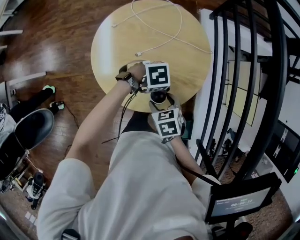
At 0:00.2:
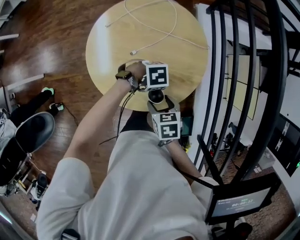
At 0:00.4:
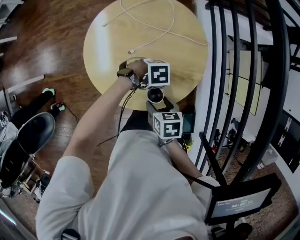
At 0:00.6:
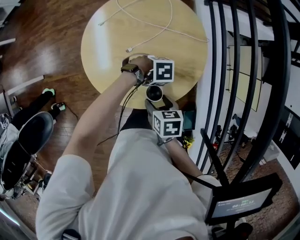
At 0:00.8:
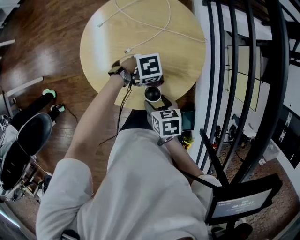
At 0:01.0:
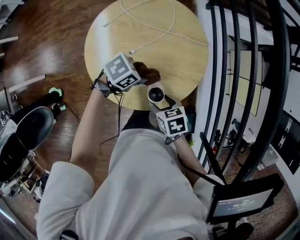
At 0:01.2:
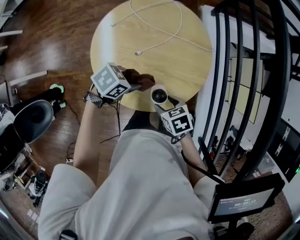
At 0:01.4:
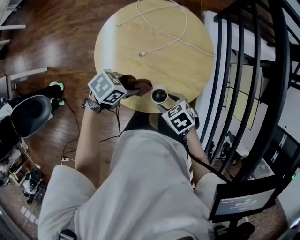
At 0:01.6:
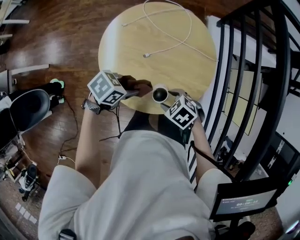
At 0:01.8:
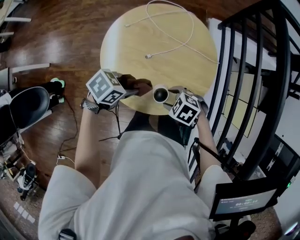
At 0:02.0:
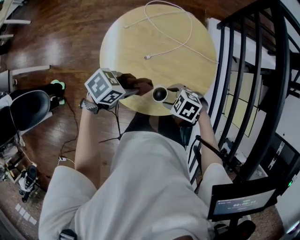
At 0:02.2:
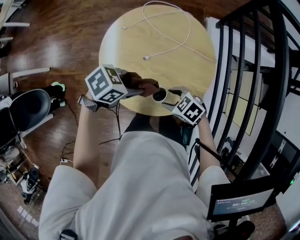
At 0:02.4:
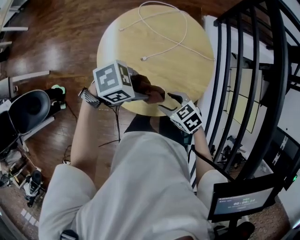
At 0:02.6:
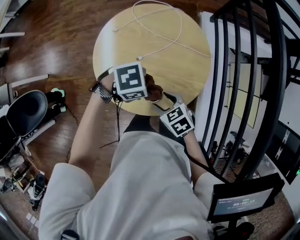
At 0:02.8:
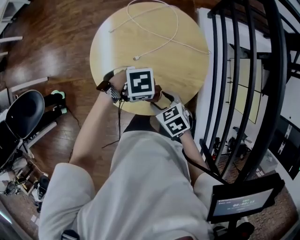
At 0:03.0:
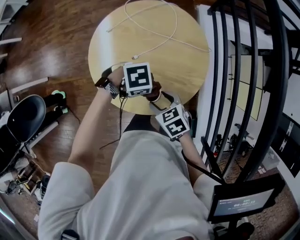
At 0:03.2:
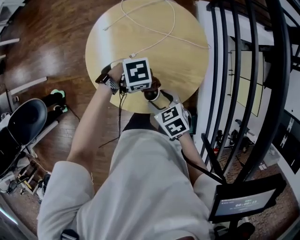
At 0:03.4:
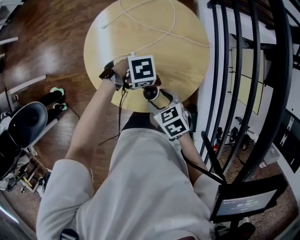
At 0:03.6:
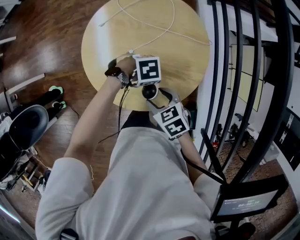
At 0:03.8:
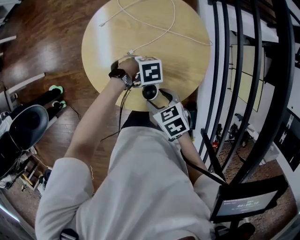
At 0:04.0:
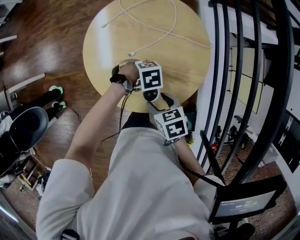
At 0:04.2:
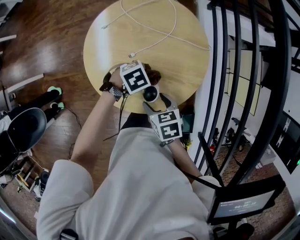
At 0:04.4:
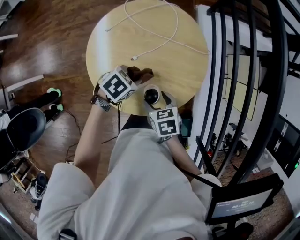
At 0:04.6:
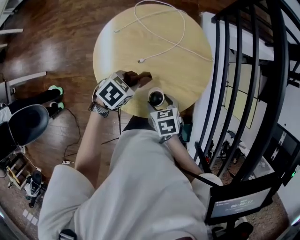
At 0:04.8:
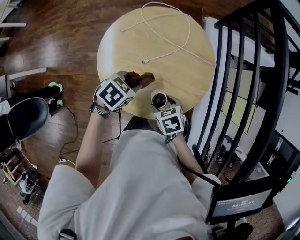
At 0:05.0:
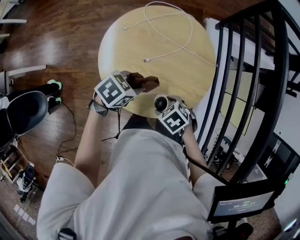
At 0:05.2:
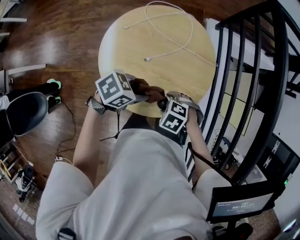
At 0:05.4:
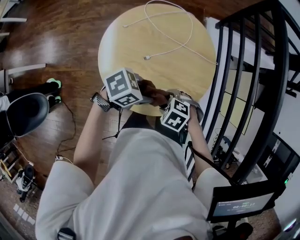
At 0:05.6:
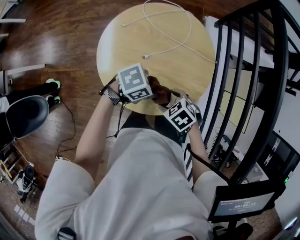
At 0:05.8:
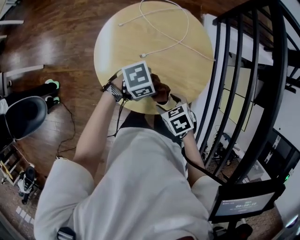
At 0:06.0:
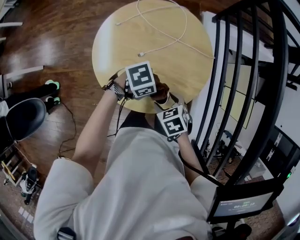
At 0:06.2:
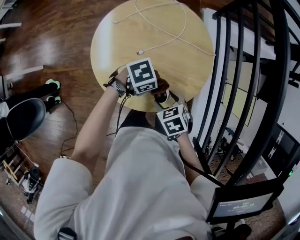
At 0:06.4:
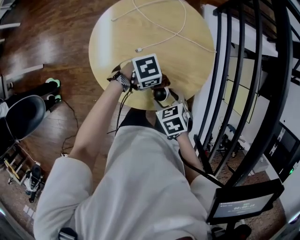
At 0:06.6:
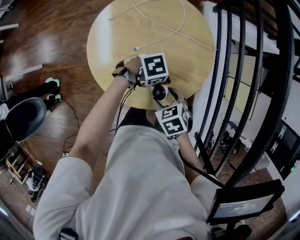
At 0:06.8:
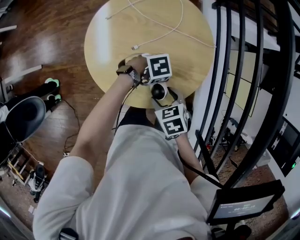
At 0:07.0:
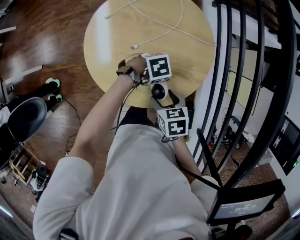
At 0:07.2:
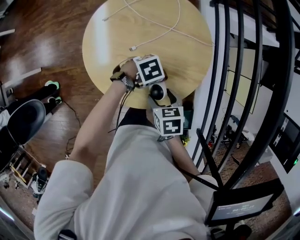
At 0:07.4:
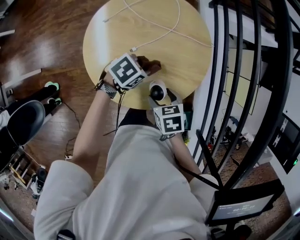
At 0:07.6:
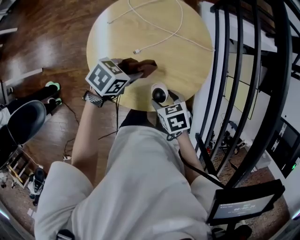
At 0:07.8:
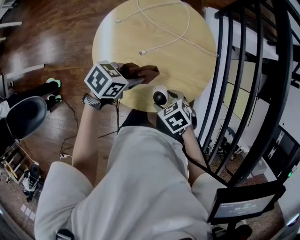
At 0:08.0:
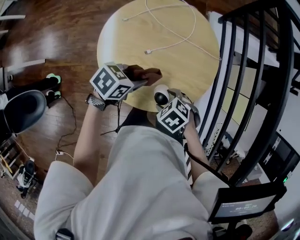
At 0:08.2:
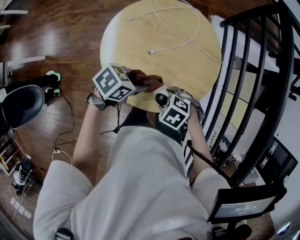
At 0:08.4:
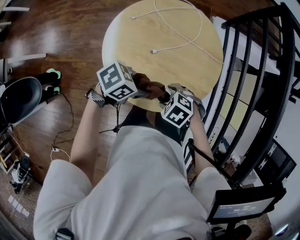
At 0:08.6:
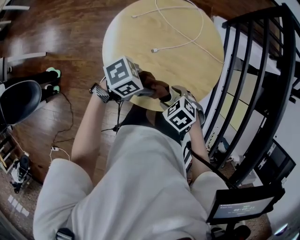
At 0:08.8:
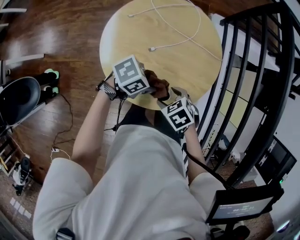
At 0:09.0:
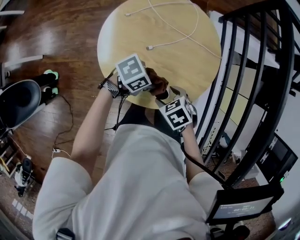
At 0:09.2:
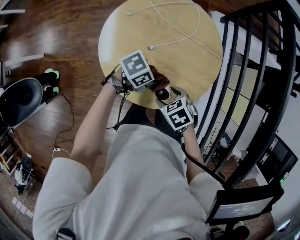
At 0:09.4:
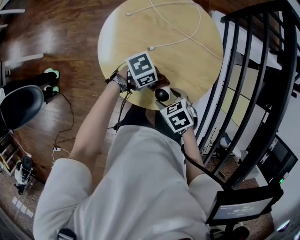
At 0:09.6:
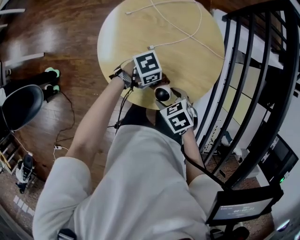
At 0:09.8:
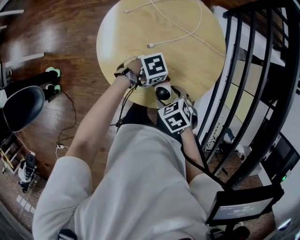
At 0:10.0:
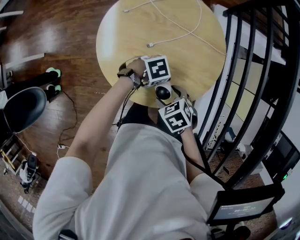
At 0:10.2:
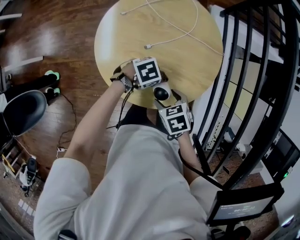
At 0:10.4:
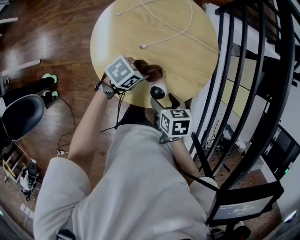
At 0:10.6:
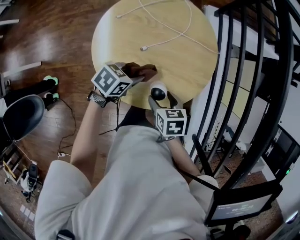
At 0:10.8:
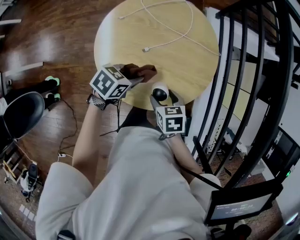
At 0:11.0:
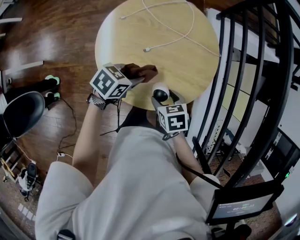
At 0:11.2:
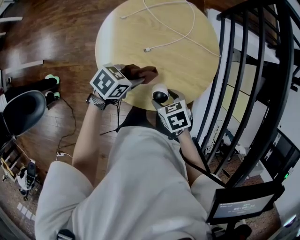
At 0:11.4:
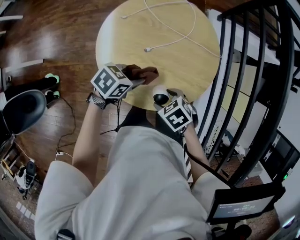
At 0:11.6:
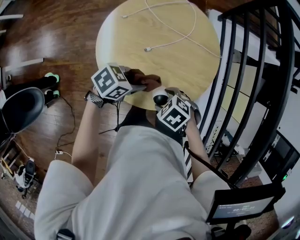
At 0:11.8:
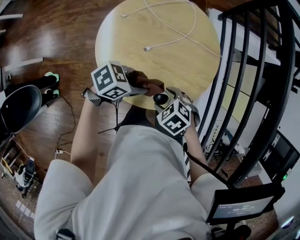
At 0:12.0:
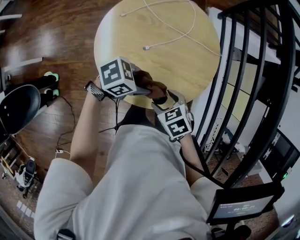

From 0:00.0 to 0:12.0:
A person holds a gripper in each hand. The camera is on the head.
From 0:00.0 to 0:01.6: The right gripper swivels about 40 degrees; the left gripper changes place by approximately 15 cm, and changes its angle by approximately 40 degrees.
From 0:01.6 to 0:03.0: The right gripper rotates about 30 degrees, while the left gripper reaches some 5 cm upward, then returns, and rotates approximately 40 degrees.
From 0:03.0 to 0:04.4: The left gripper travels downward and back again, roughly 10 cm each way, and rotates some 30 degrees.
From 0:04.4 to 0:06.0: The left gripper moves approximately 10 cm, and turns by about 20 degrees.
From 0:06.0 to 0:07.6: The left gripper reaches roughly 5 cm downward, then returns, and rotates some 30 degrees.
From 0:07.6 to 0:09.0: The right gripper rotates about 20 degrees. Meanwhile the left gripper changes place by some 5 cm.
From 0:09.0 to 0:10.4: The left gripper ends up some 5 cm from where it was. Meanwhile the right gripper rotates roughly 40 degrees.
From 0:10.4 to 0:12.0: The right gripper turns by roughly 30 degrees; the left gripper shifts roughly 5 cm upward, and turns by some 20 degrees.

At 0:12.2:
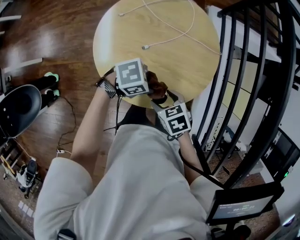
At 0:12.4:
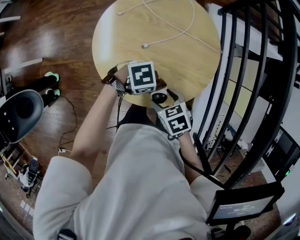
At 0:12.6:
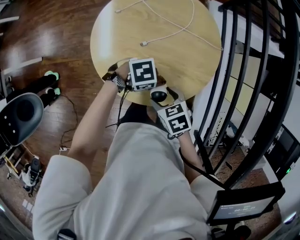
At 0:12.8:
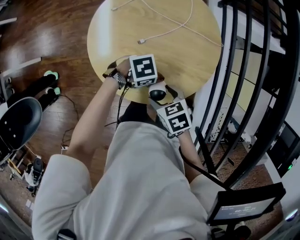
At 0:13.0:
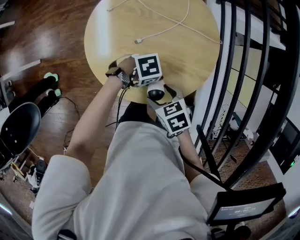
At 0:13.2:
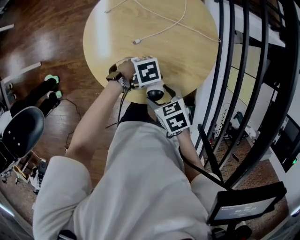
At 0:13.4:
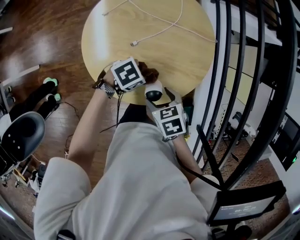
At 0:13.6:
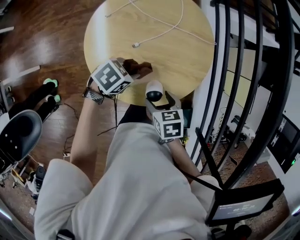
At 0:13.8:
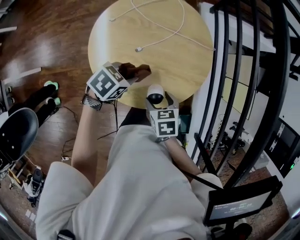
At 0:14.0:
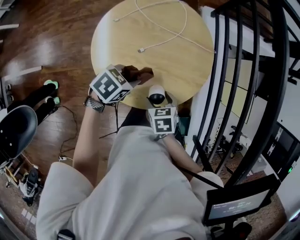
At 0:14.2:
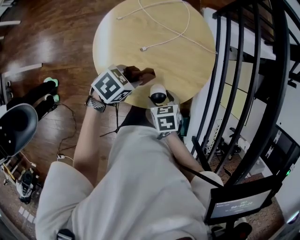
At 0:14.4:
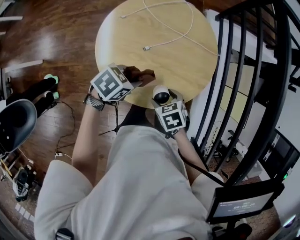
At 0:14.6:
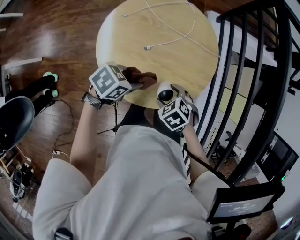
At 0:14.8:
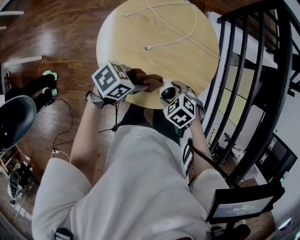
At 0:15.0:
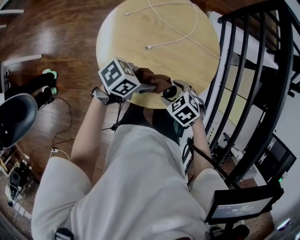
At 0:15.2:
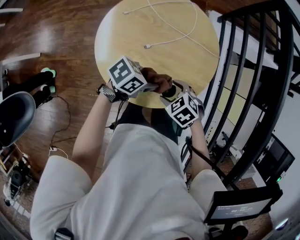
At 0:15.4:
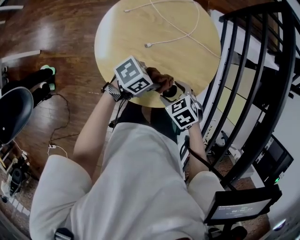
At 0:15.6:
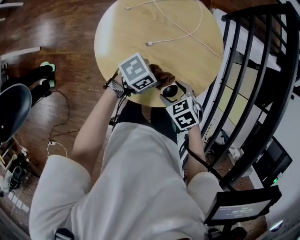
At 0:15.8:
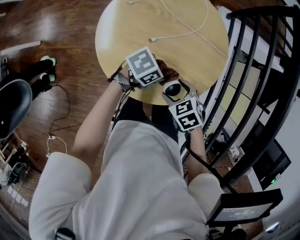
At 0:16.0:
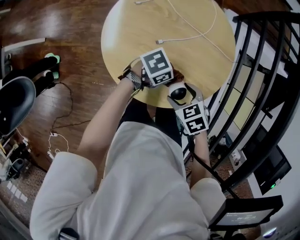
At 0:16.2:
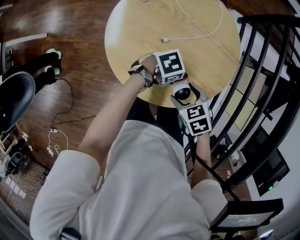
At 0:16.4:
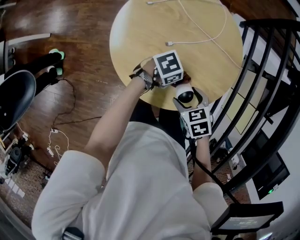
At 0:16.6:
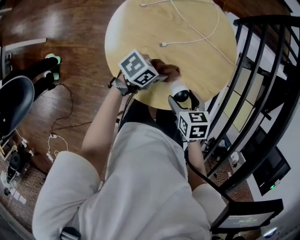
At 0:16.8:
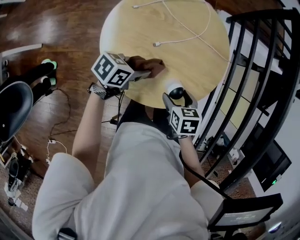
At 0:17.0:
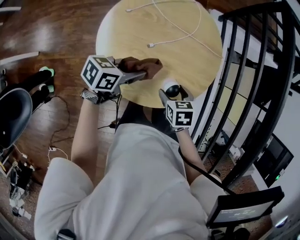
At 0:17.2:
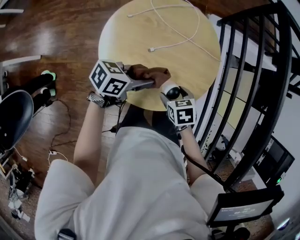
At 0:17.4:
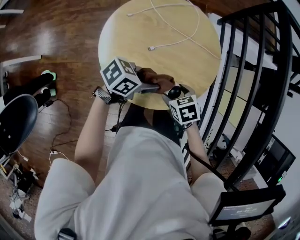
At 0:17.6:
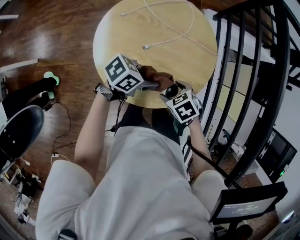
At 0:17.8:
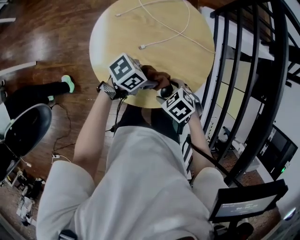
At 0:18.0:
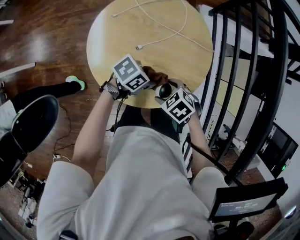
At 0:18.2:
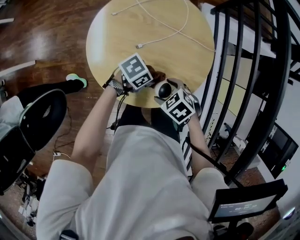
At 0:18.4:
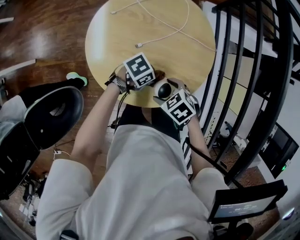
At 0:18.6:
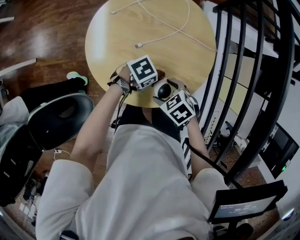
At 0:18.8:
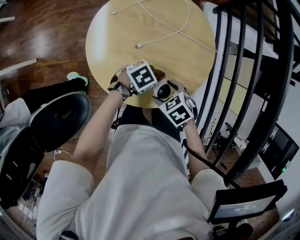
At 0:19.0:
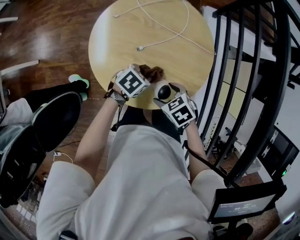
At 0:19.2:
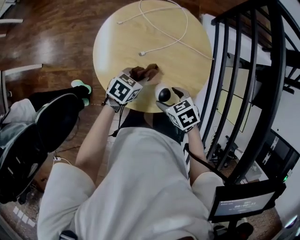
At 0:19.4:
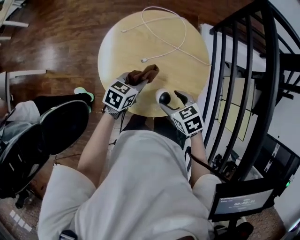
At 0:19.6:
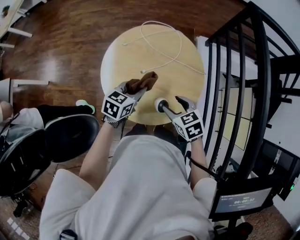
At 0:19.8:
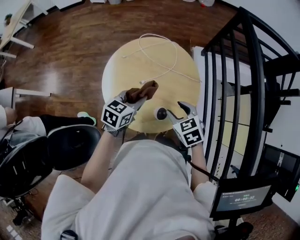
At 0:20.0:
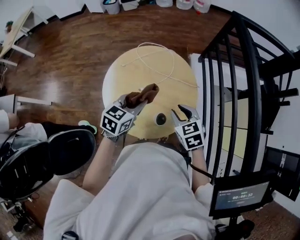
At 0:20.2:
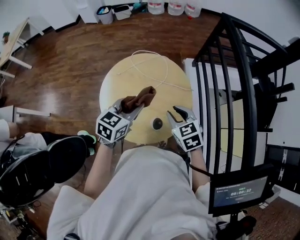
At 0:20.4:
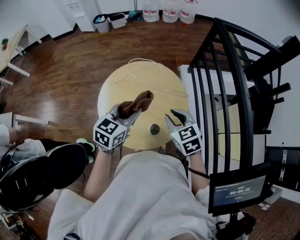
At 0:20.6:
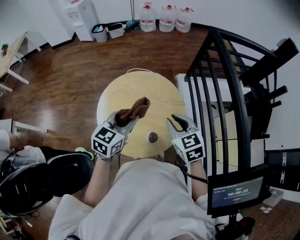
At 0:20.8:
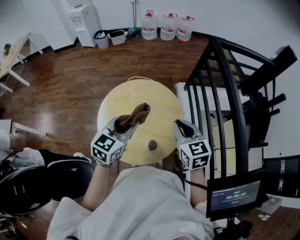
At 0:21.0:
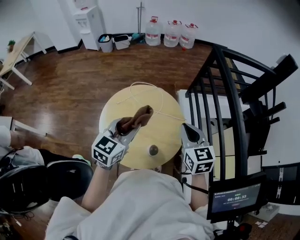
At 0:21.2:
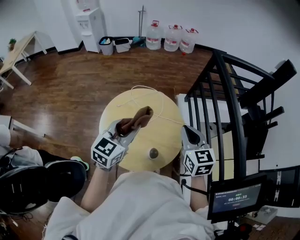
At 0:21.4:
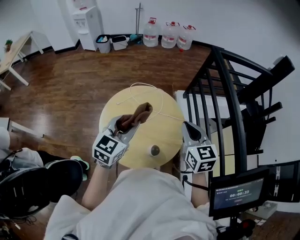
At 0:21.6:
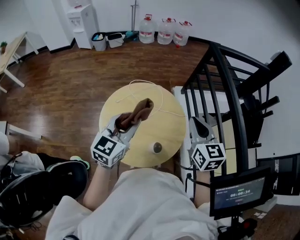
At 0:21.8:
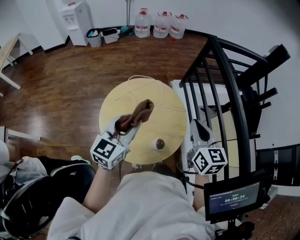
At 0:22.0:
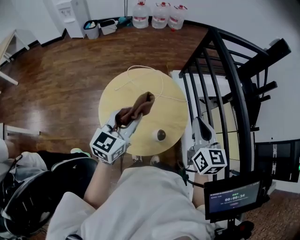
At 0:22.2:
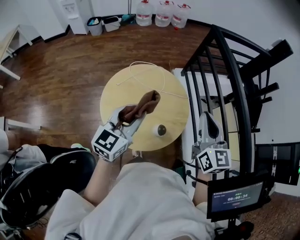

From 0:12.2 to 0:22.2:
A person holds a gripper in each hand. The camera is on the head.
From 0:12.2 to 0:13.6: The right gripper changes its angle by approximately 20 degrees. Meanwhile the left gripper goes downward and returns, about 10 cm each way, and rotates roughly 20 degrees.
From 0:13.6 to 0:15.0: The right gripper shifts by roughly 5 cm, and twists some 50 degrees counterclockwise, seen from behind. The left gripper moves some 5 cm, and turns by some 20 degrees.
From 0:15.0 to 0:16.4: The left gripper shifts roughly 10 cm downward.
From 0:18.0 to 0:19.4: The right gripper is displaced upward by roughly 5 cm, and rotates about 20 degrees. Meanwhile the left gripper changes place by roughly 10 cm, and changes its angle by some 40 degrees.
From 0:19.4 to 0:20.8: Both grippers travel together upward, roughly 20 cm. The left gripper rotates some 30 degrees, while the right gripper swivels about 40 degrees, and closes up.
From 0:20.8 to 0:22.2: The right gripper moves upward, approximately 10 cm, and rotates roughly 30 degrees. The left gripper shifts by approximately 5 cm.

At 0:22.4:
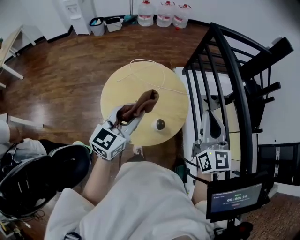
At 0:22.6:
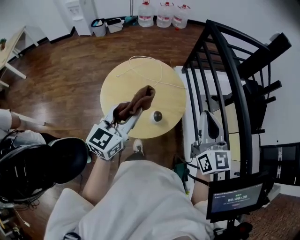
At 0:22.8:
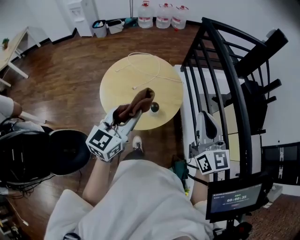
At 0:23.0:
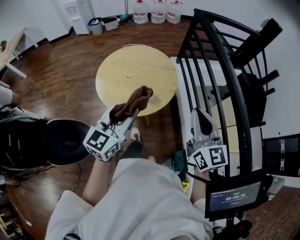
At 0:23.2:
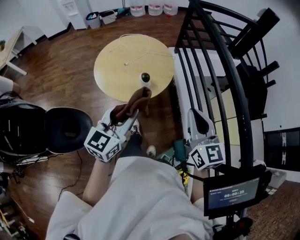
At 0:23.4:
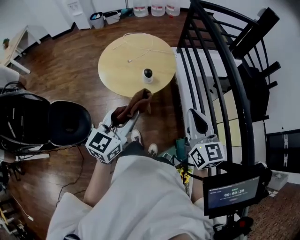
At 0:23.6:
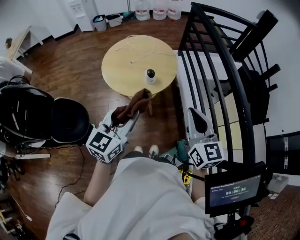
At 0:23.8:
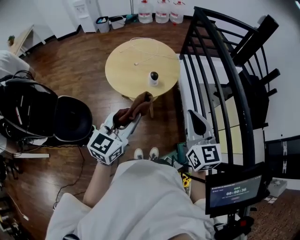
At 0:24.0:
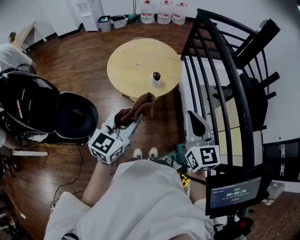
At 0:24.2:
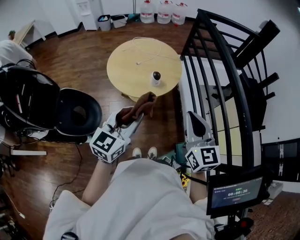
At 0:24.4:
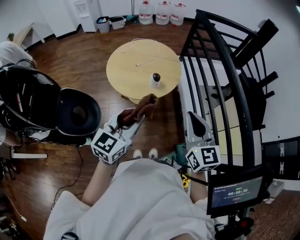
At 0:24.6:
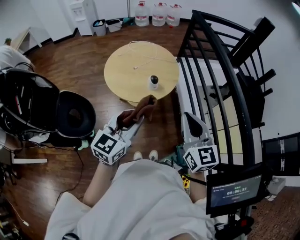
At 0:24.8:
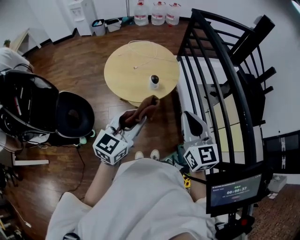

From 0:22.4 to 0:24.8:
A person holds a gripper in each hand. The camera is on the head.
From 0:22.4 to 0:23.6: Both grippers move backward, roughly 25 cm.
From 0:23.6 to 0:24.8: The grippers make only small movements.
